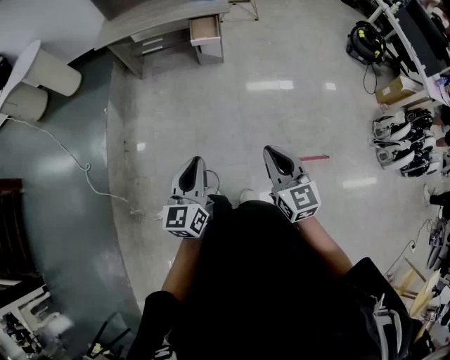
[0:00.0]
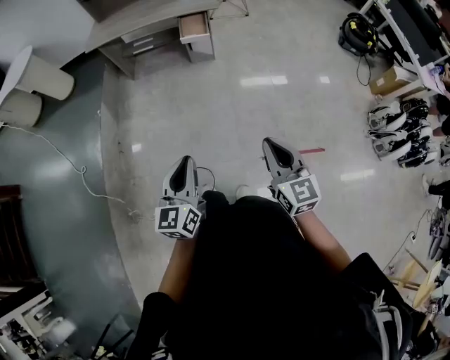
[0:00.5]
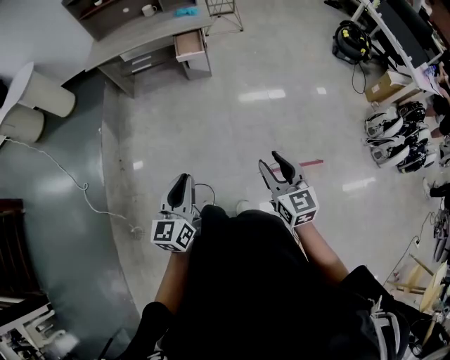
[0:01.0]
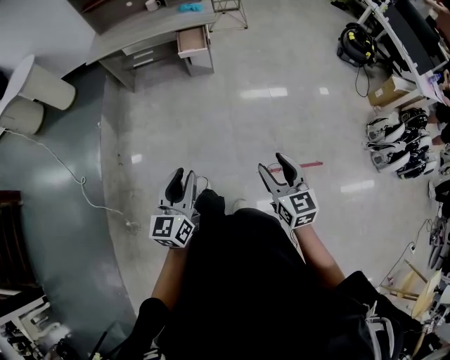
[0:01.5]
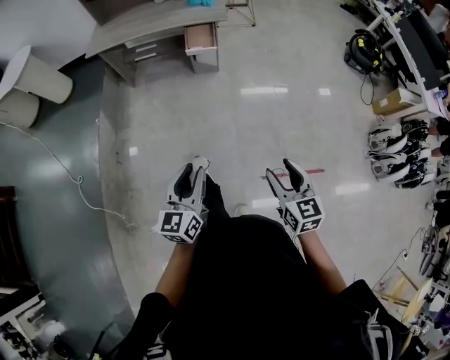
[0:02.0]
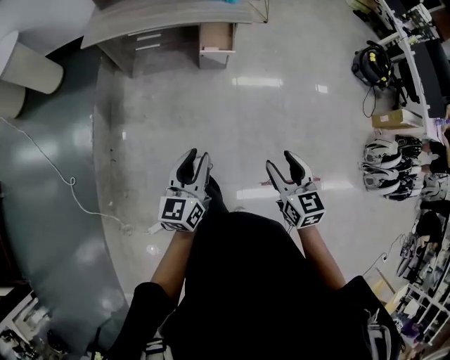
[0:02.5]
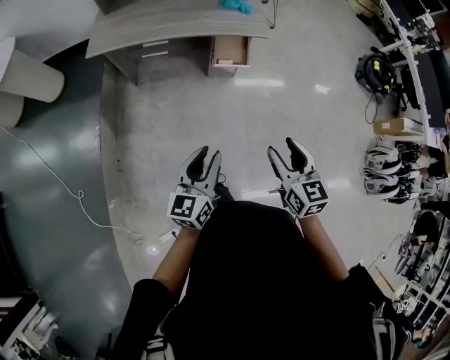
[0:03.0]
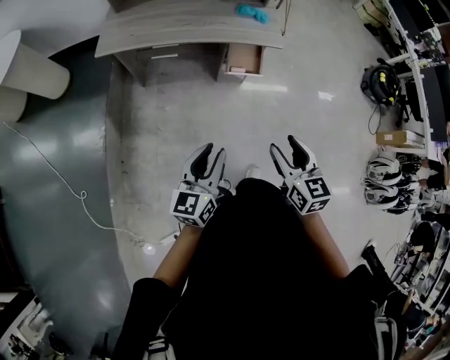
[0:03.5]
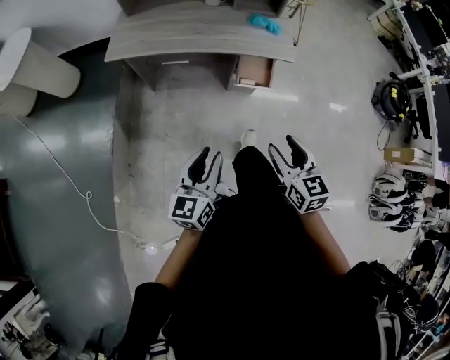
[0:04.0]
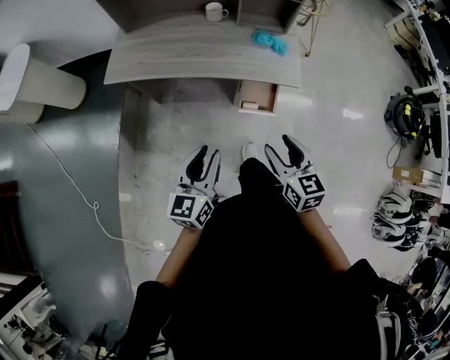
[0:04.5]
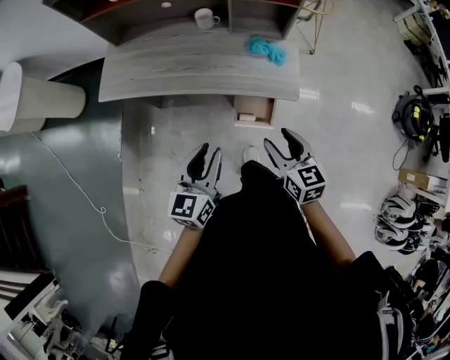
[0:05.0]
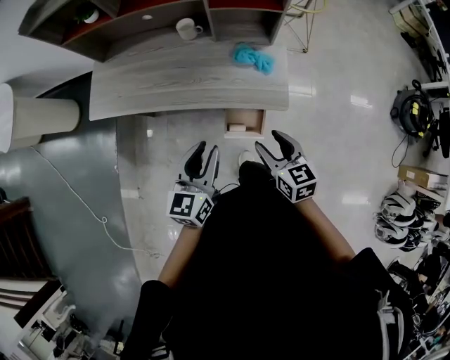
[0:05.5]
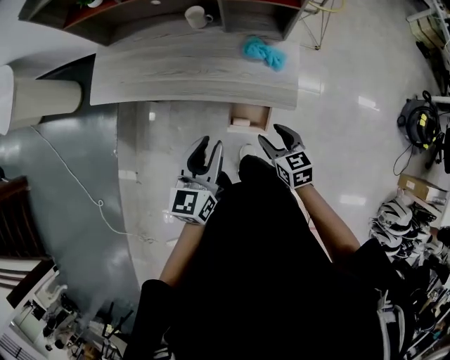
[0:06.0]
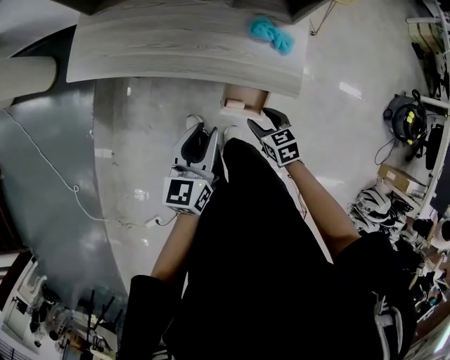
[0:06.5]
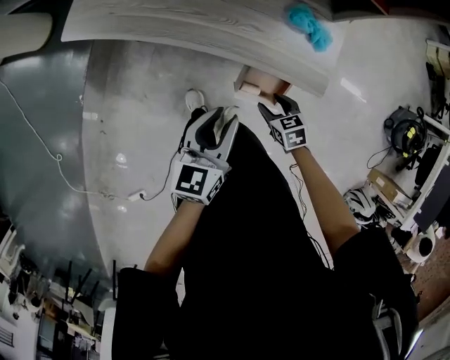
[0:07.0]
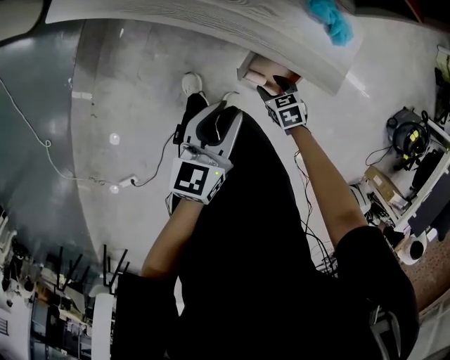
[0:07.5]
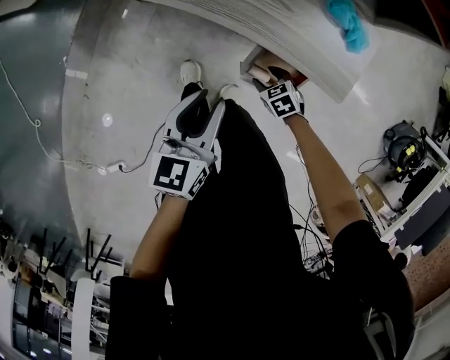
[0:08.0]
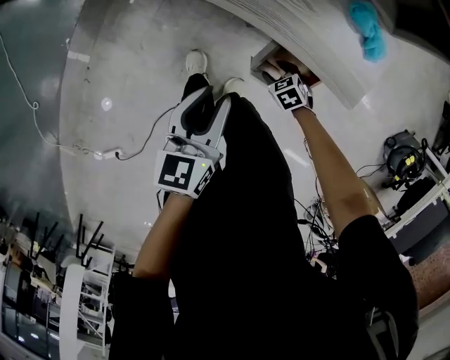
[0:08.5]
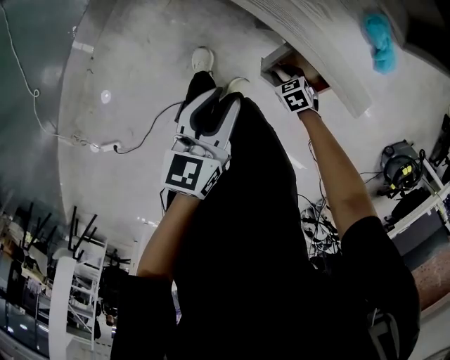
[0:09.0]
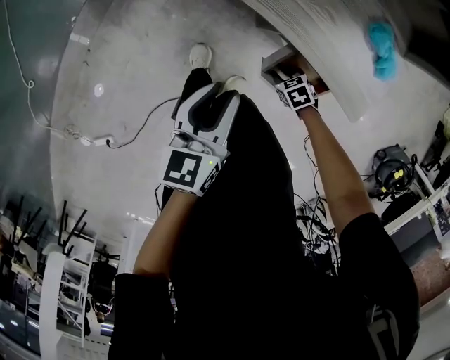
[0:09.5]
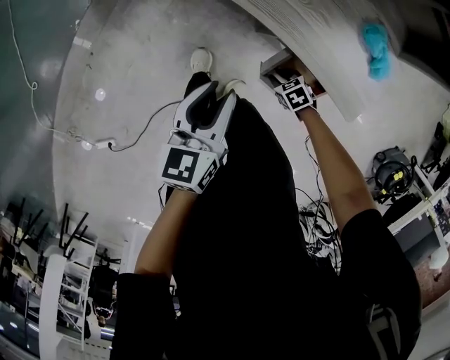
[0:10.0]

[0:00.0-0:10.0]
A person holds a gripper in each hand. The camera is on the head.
0:00.0 to 0:02.0: The left gripper goes some 10 cm forward. The right gripper is displaced forward and downward by about 10 cm, and opens its fingers.
0:02.0 to 0:04.0: The pair of grippers is taken forward and to the left, about 50 cm.
0:04.0 to 0:06.0: Both grippers are carried forward and to the right, about 40 cm. The right gripper swivels approximately 20 degrees.
0:06.0 to 0:08.0: The right gripper shifts roughly 35 cm downward, and turns by approximately 40 degrees. The left gripper goes about 25 cm downward and to the left.
0:08.0 to 0:10.0: The right gripper ends up about 5 cm from where it was, and closes.

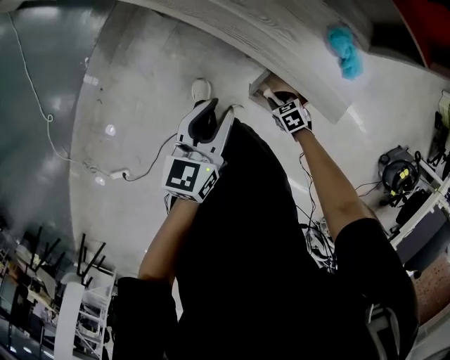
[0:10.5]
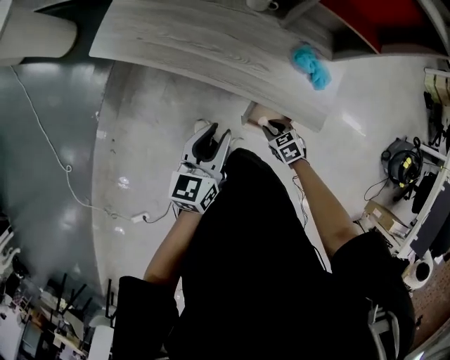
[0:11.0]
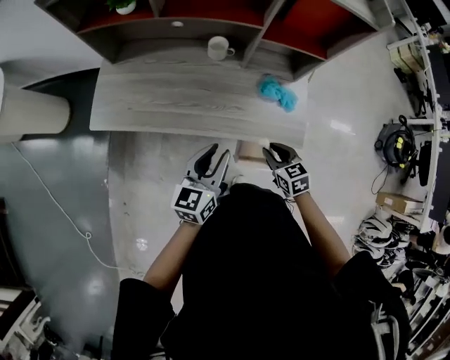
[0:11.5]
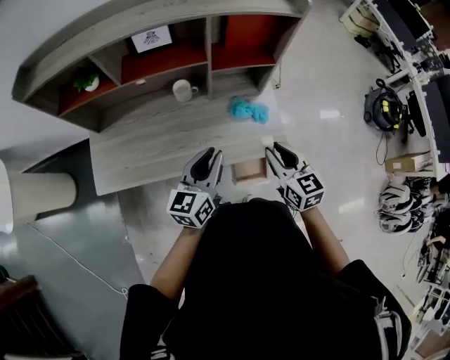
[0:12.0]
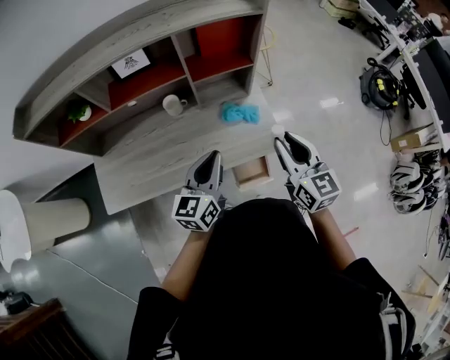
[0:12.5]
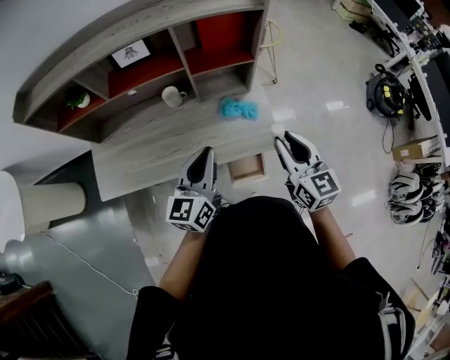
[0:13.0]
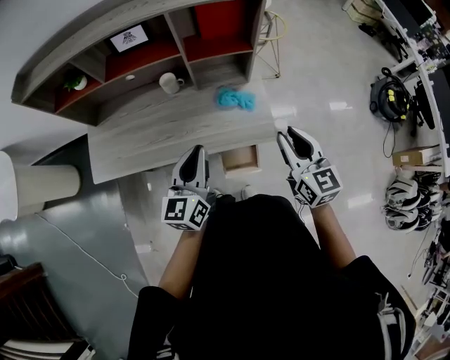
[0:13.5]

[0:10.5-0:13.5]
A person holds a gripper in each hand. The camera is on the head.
0:10.5 to 0:12.0: The left gripper travels upward by approximately 20 cm, and swivels about 40 degrees; the right gripper travels upward by about 50 cm, and tips its fingers upward by some 50 degrees.
0:12.0 to 0:13.5: The left gripper is displaced to the right by about 5 cm, while the right gripper travels to the right and upward by about 15 cm.

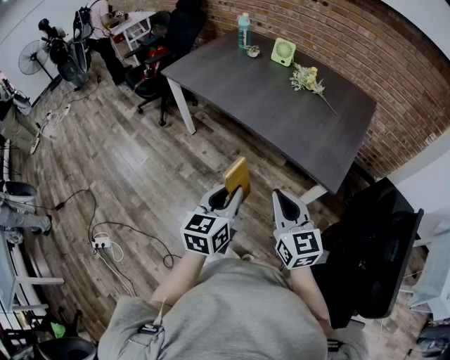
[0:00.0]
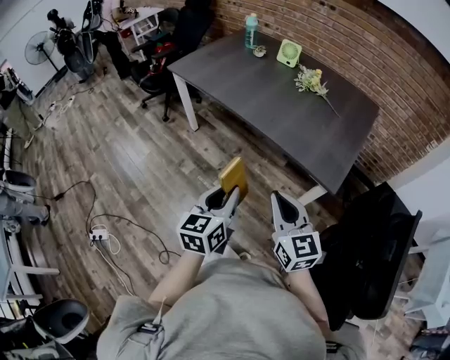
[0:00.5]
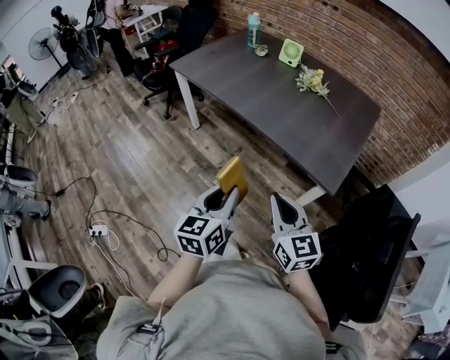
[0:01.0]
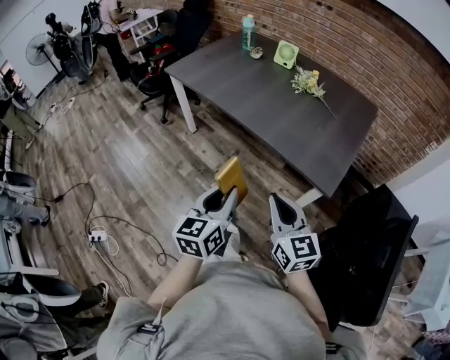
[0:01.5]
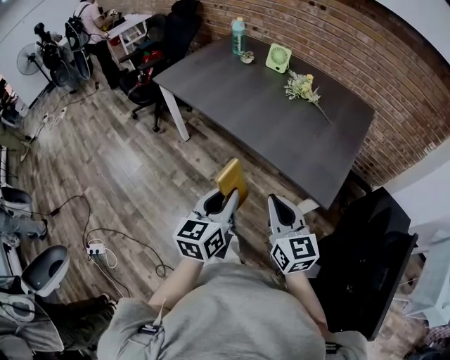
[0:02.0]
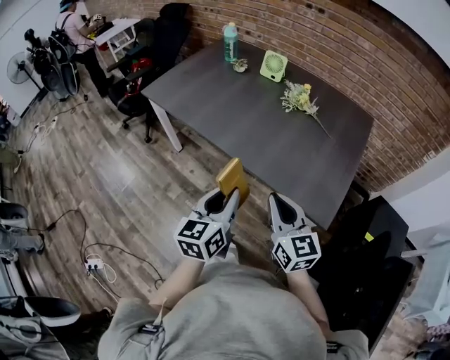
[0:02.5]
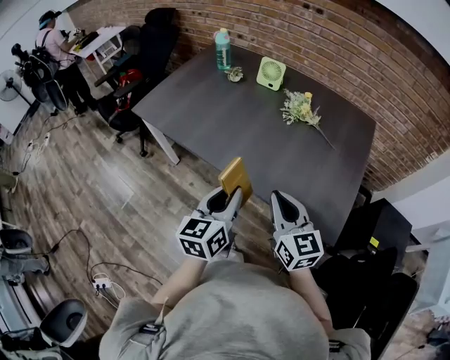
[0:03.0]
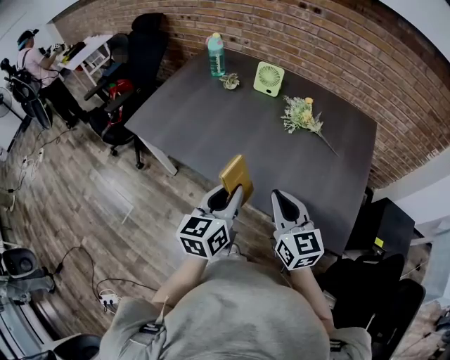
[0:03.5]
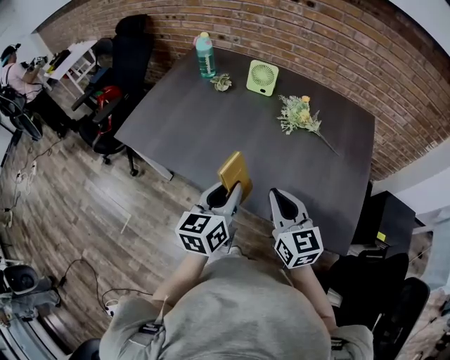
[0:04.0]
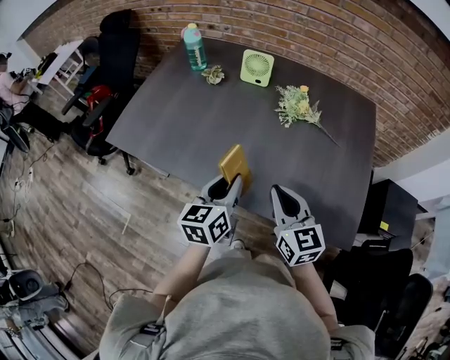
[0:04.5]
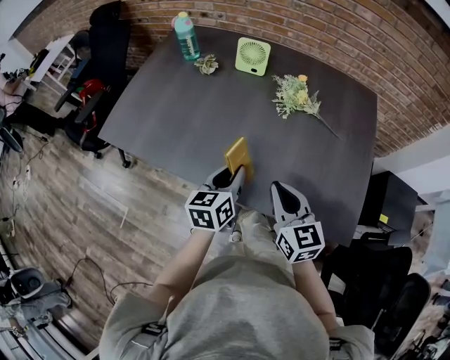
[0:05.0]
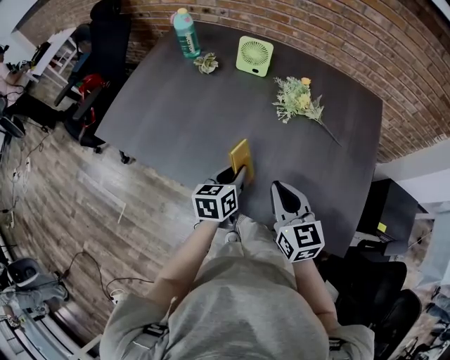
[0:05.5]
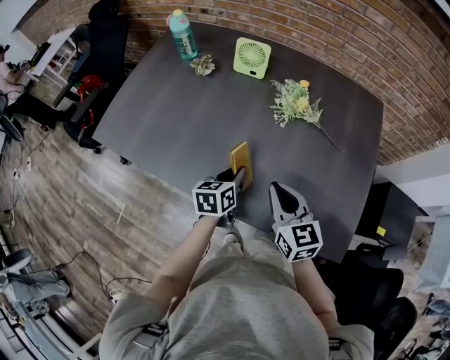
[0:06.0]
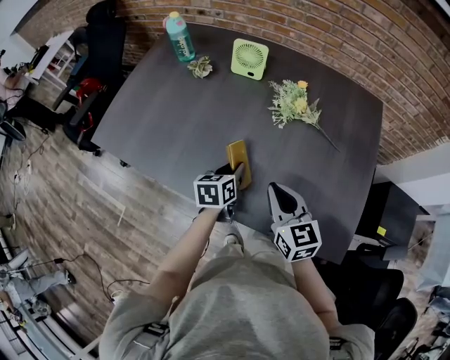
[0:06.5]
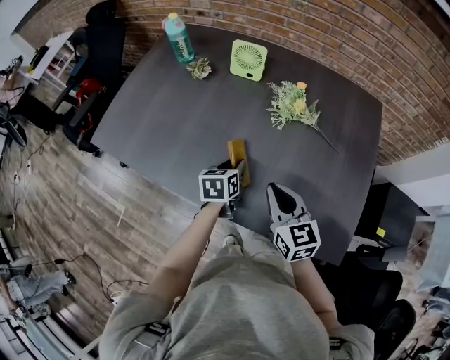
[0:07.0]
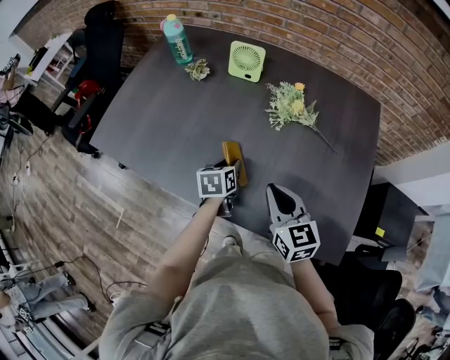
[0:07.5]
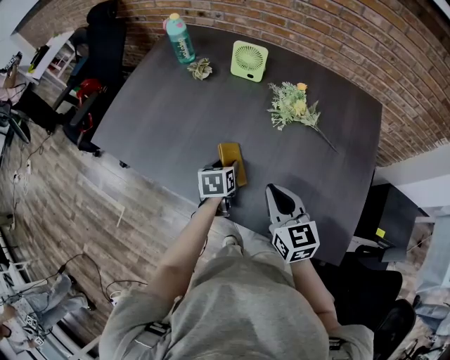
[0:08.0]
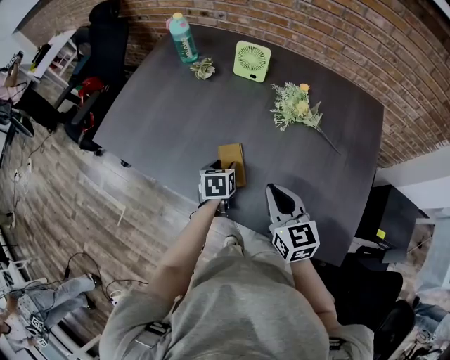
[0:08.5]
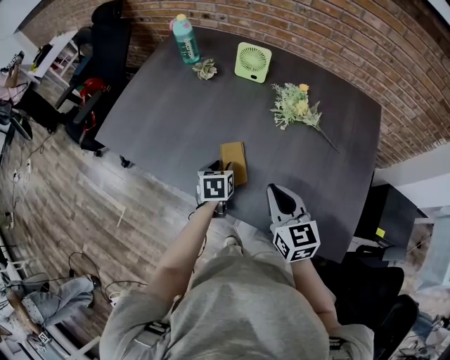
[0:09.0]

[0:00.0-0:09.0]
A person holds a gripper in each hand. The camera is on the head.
0:00.0 to 0:02.0: Both grippers travel together forward, roughly 5 cm.
0:02.0 to 0:04.5: The grippers both shift forward by roughly 35 cm.
0:04.5 to 0:07.0: The left gripper heads downward and forward, covering roughly 20 cm, and rotates approximately 20 degrees; the right gripper goes some 10 cm forward and downward.
0:07.0 to 0:09.0: The left gripper shifts some 5 cm to the left.

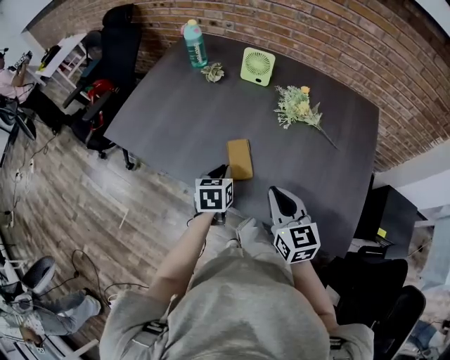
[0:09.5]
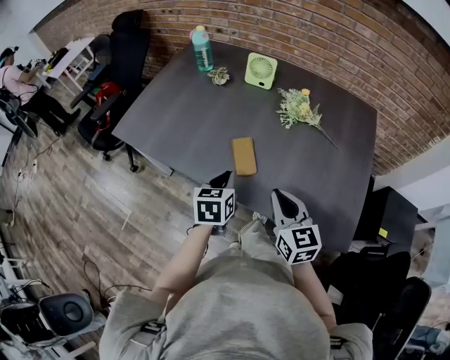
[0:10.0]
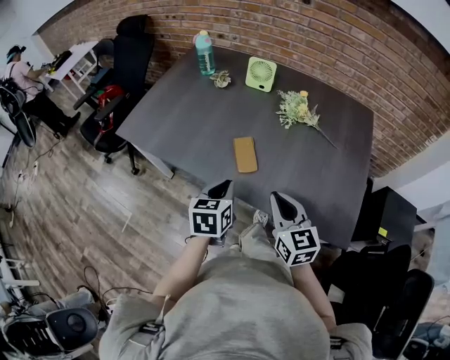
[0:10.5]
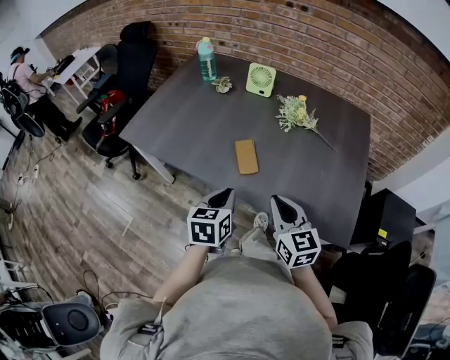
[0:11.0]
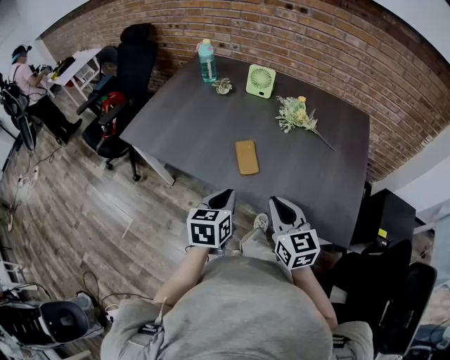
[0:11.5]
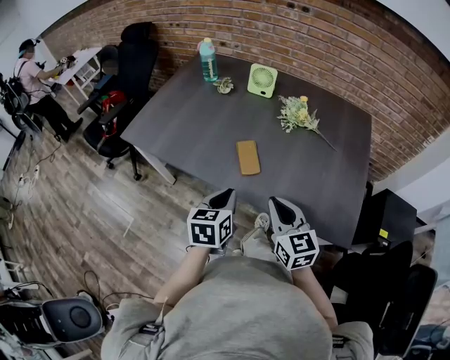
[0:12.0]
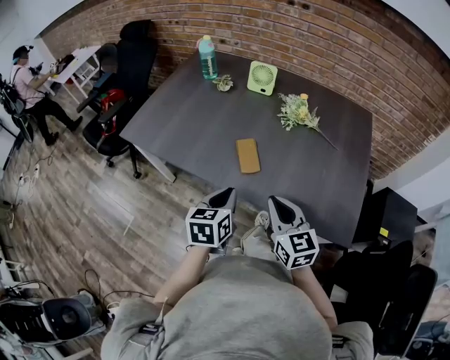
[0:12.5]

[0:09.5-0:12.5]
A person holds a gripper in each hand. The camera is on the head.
0:09.5 to 0:11.0: The left gripper travels backward and upward by some 15 cm; the right gripper travels backward by about 10 cm.
0:11.0 to 0:12.5: The two grippers keep their place.

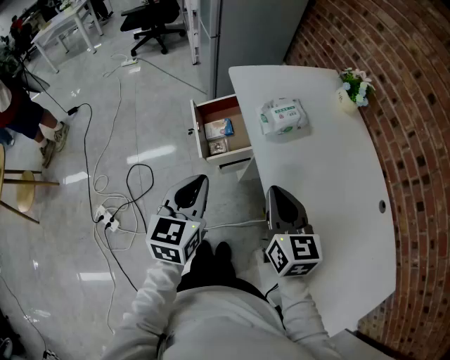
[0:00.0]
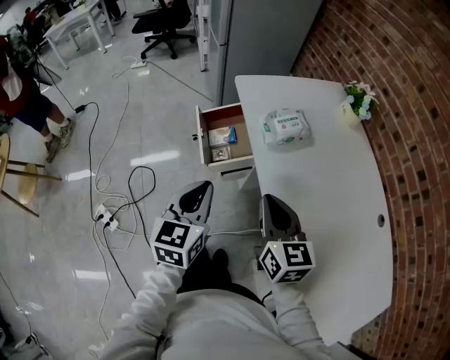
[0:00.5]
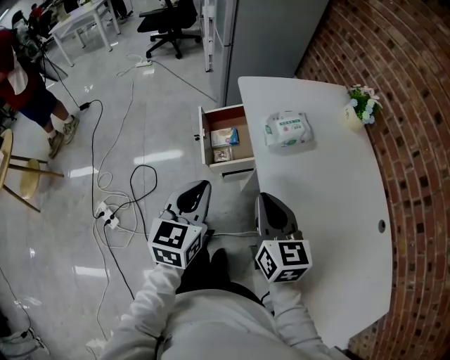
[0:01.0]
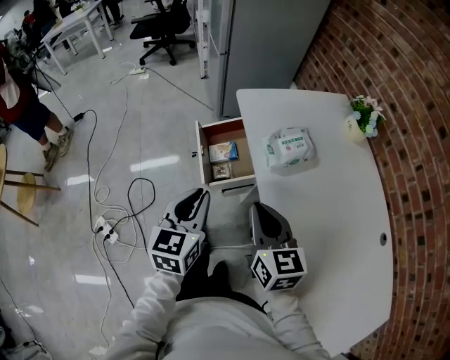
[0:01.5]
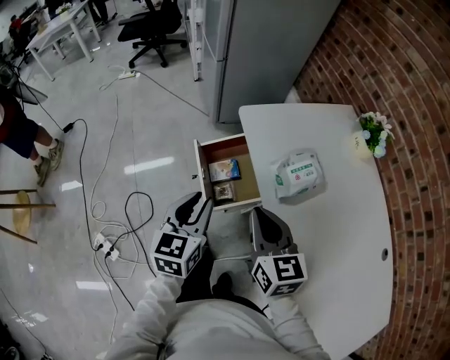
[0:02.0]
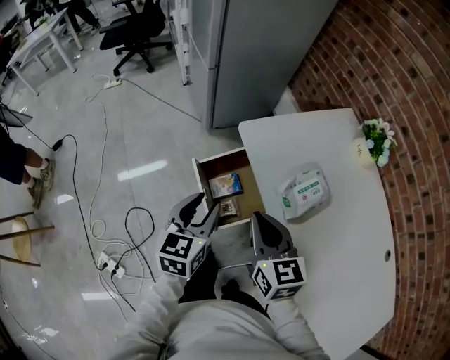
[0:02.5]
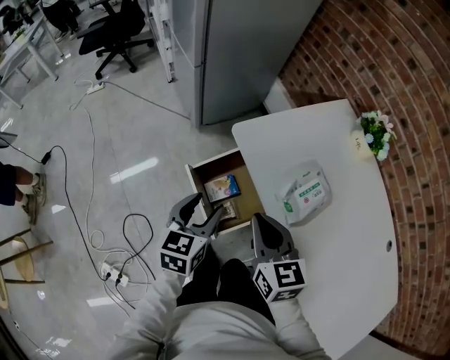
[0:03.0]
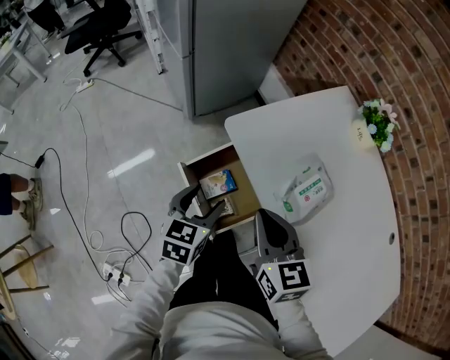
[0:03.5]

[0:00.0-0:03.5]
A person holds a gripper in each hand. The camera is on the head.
0:00.0 to 0:02.0: The right gripper travels forward and to the left by roughly 20 cm. Meanwhile the left gripper goes approximately 15 cm forward.
0:02.0 to 0:03.5: The left gripper goes roughly 15 cm forward and downward, rotates some 30 degrees, and opens its fingers, while the right gripper heads forward, covering approximately 10 cm.
